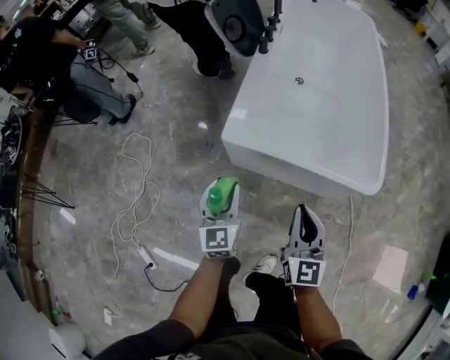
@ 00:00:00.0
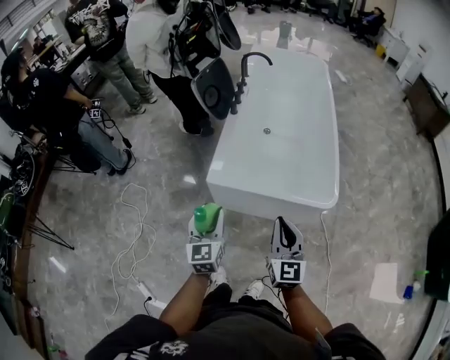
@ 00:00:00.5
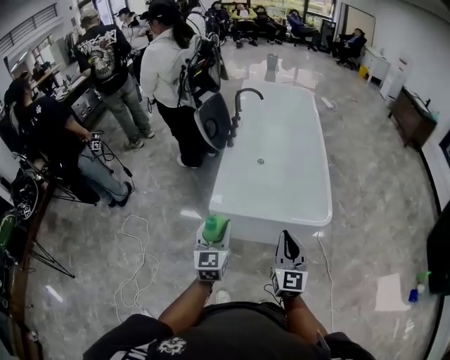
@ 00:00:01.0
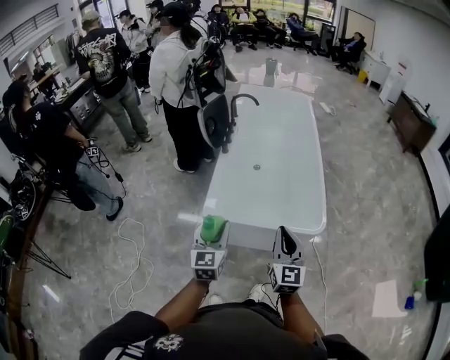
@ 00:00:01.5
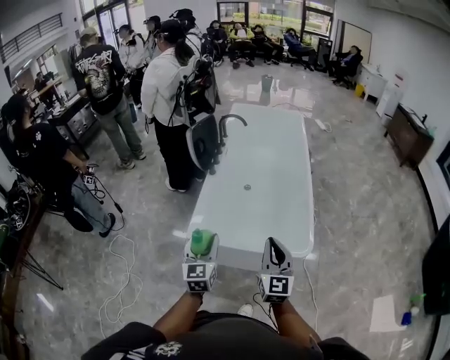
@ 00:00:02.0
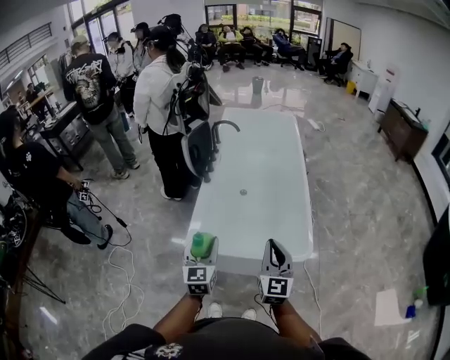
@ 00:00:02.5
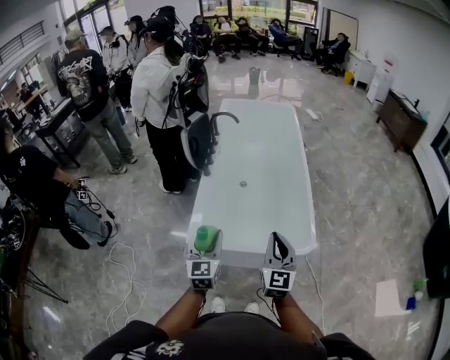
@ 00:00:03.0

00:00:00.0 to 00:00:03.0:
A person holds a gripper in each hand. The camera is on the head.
00:00:00.0 to 00:00:01.5: Both grippers travel together upward, approximately 25 cm.
00:00:01.5 to 00:00:03.0: The two grippers go about 10 cm forward and to the right.

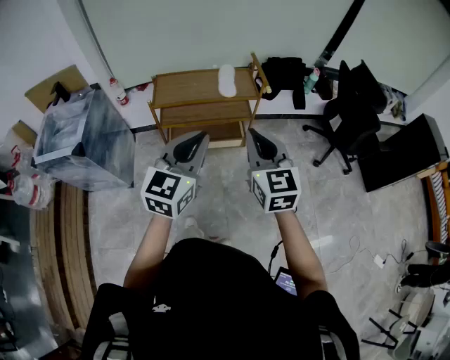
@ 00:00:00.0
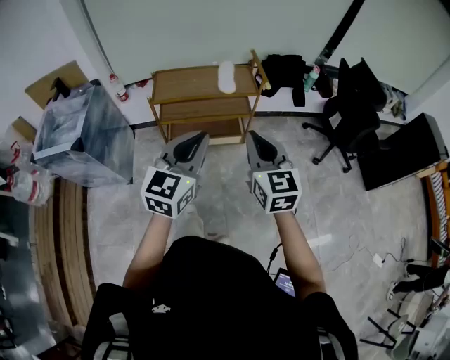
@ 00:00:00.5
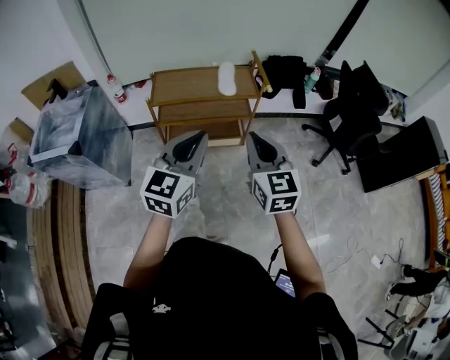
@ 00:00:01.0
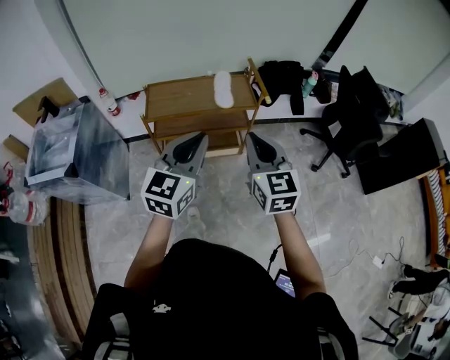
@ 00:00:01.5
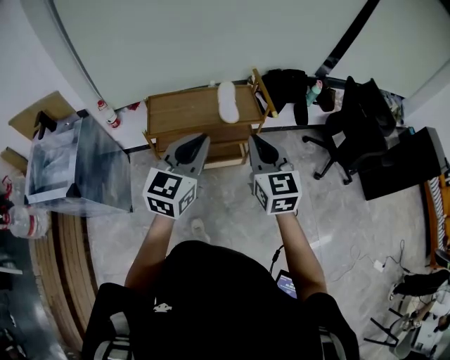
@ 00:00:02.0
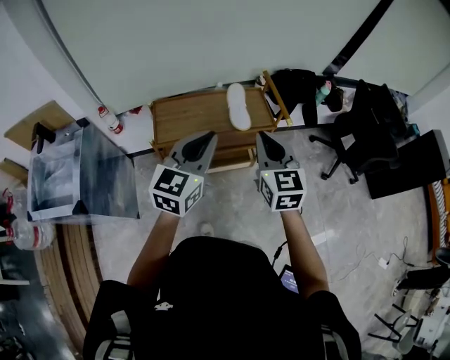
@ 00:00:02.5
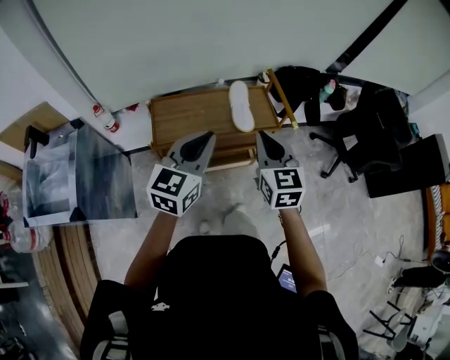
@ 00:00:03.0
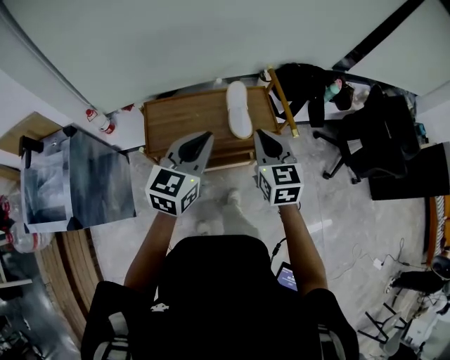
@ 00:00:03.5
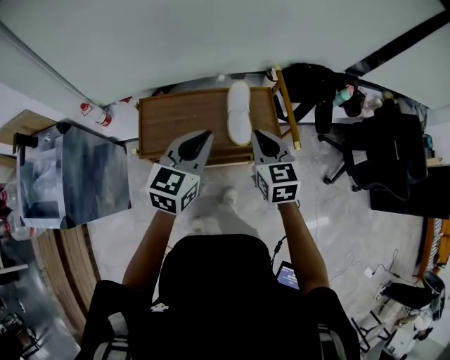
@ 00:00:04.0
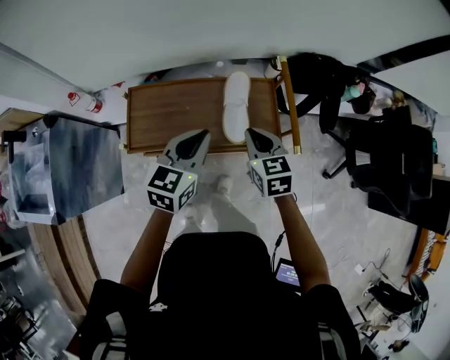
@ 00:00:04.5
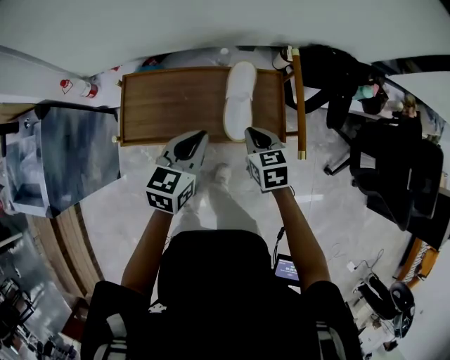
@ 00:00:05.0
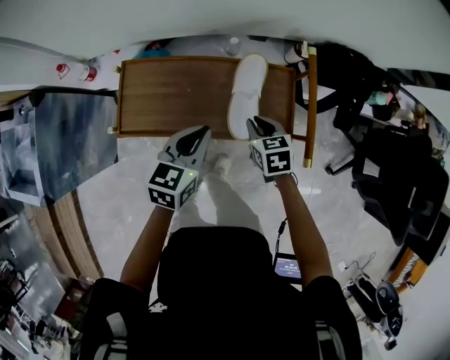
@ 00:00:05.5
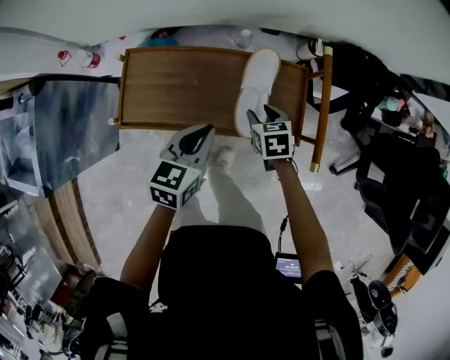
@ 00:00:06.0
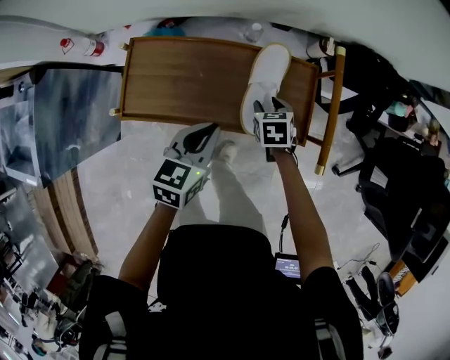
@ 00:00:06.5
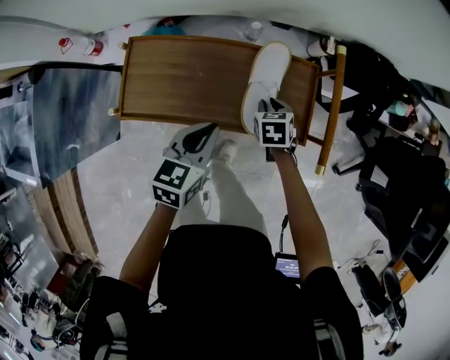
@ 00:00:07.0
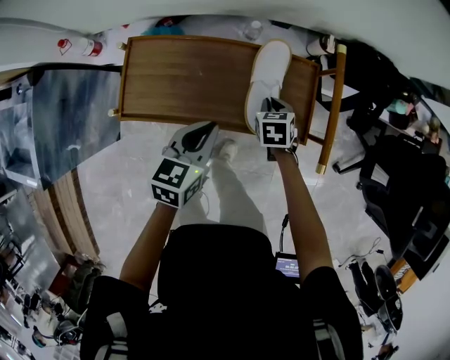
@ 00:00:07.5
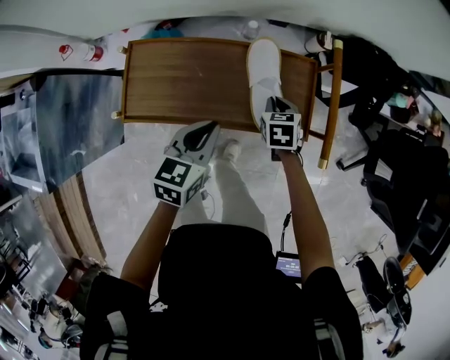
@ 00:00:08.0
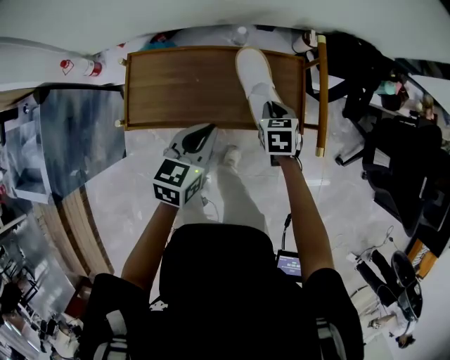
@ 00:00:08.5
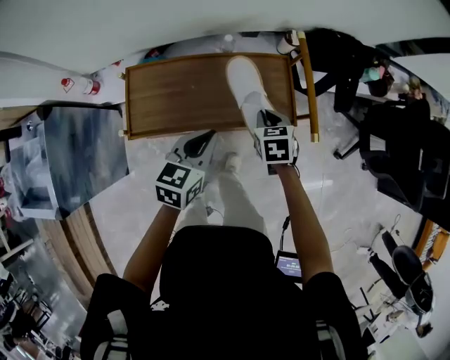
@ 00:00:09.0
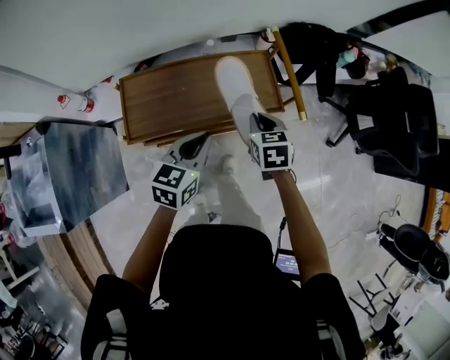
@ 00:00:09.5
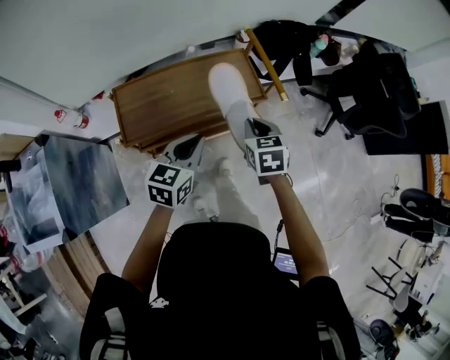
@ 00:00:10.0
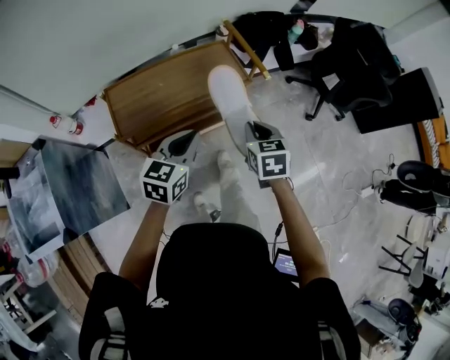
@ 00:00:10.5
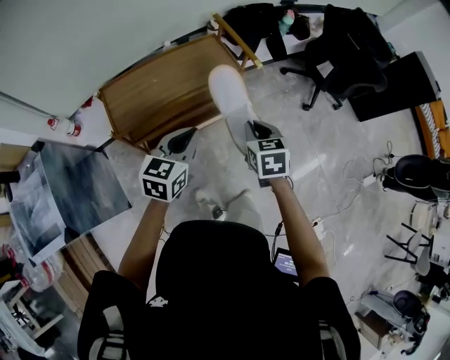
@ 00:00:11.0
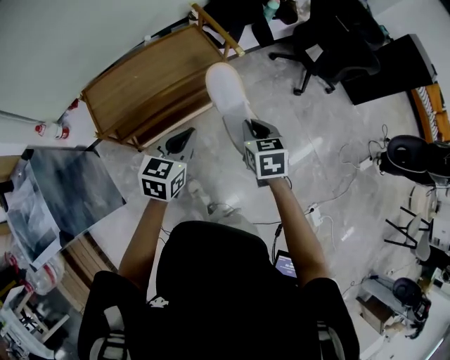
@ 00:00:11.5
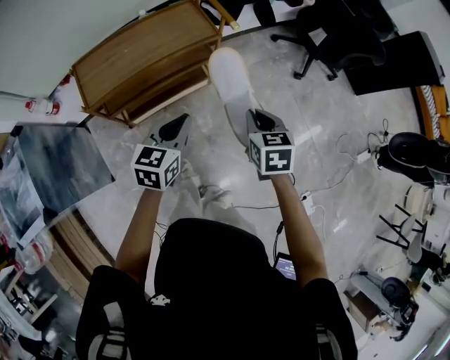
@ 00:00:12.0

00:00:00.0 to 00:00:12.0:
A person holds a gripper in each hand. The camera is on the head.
00:00:00.0 to 00:00:02.0: The two grippers go approximately 20 cm forward.
00:00:02.0 to 00:00:04.0: The right gripper moves forward and downward, some 35 cm. The left gripper goes approximately 30 cm forward.
00:00:04.0 to 00:00:06.0: Both grippers travel together downward and forward, approximately 25 cm. The right gripper tilts its fingers about 30 degrees downward, and opens its fingers; the left gripper rotates about 30 degrees.
00:00:06.0 to 00:00:08.0: The right gripper closes up.
00:00:08.0 to 00:00:10.0: The left gripper moves backward and upward, approximately 20 cm, and swivels roughly 30 degrees. Meanwhile the right gripper heads backward and upward, covering some 30 cm, and swivels about 20 degrees.
00:00:10.0 to 00:00:12.0: Both grippers move to the right and backward, about 20 cm.

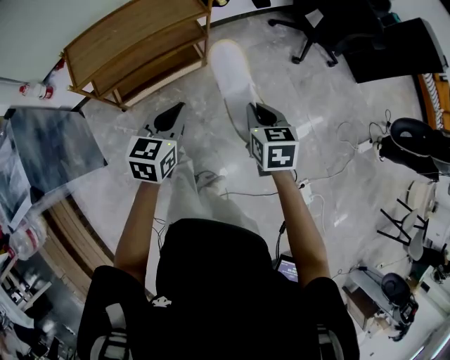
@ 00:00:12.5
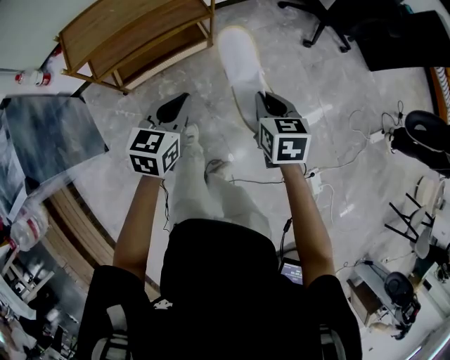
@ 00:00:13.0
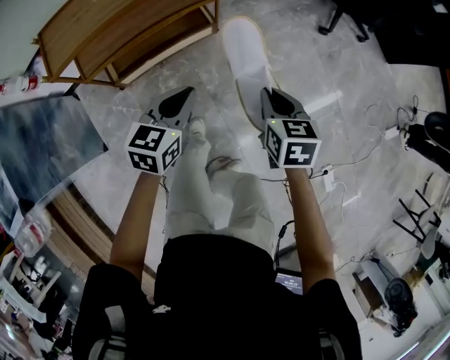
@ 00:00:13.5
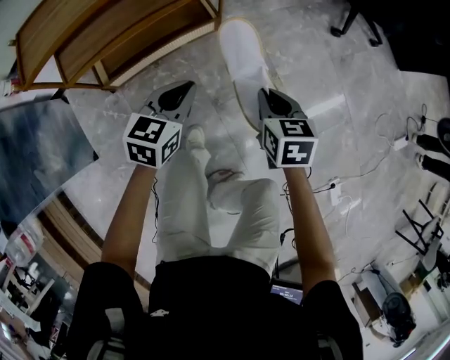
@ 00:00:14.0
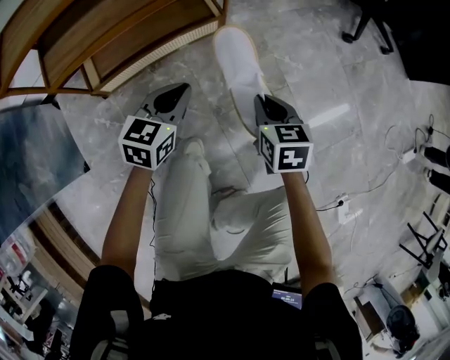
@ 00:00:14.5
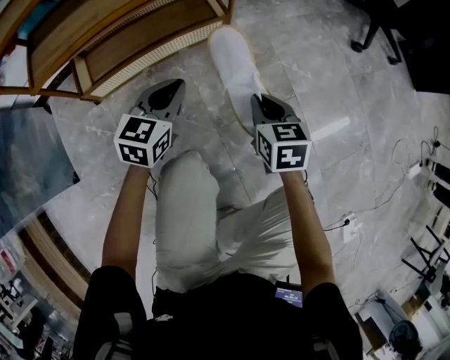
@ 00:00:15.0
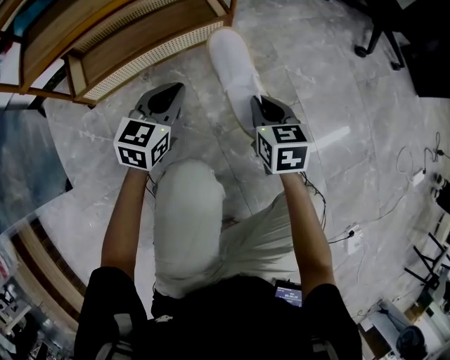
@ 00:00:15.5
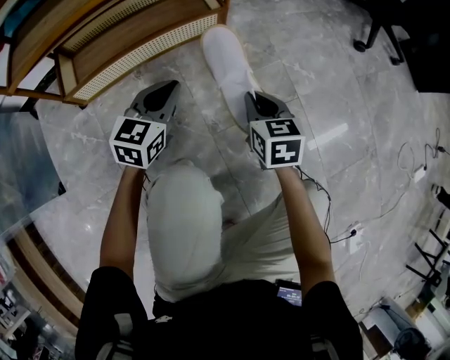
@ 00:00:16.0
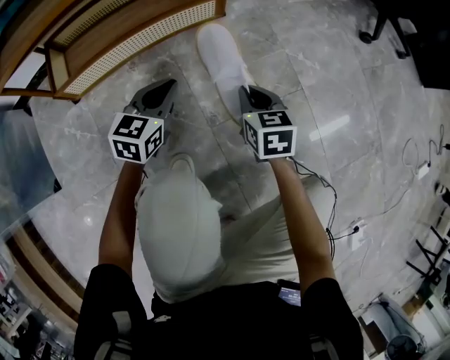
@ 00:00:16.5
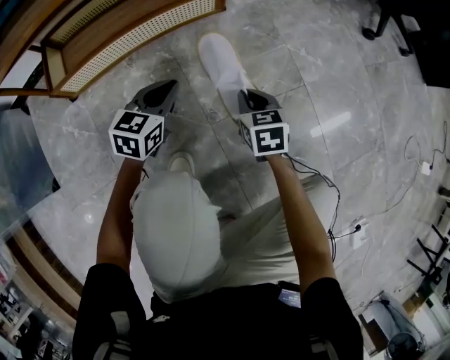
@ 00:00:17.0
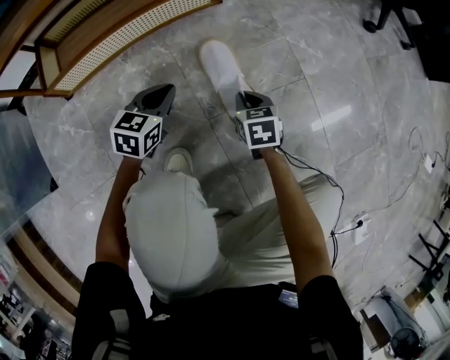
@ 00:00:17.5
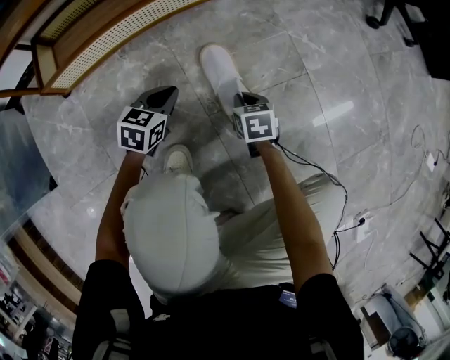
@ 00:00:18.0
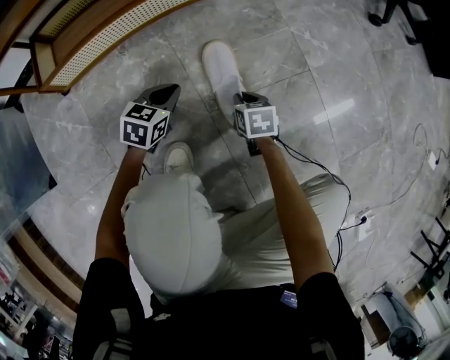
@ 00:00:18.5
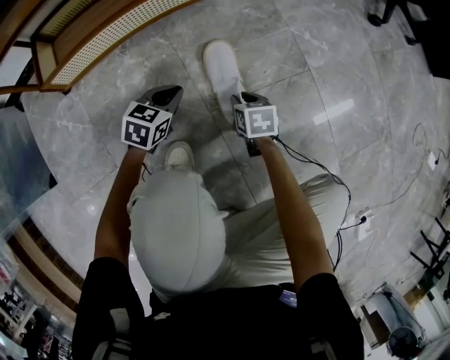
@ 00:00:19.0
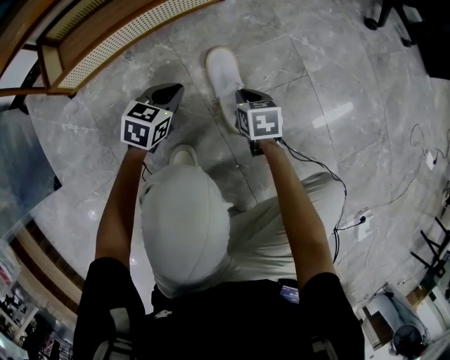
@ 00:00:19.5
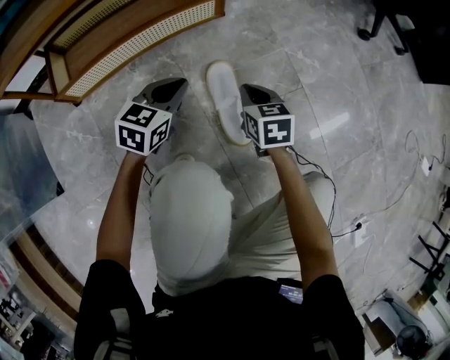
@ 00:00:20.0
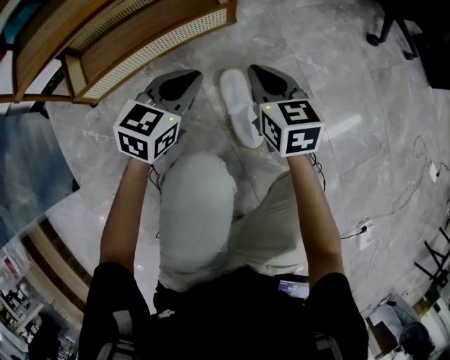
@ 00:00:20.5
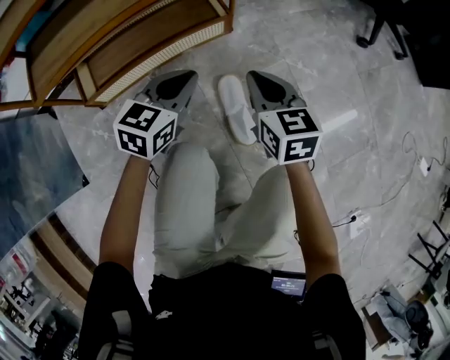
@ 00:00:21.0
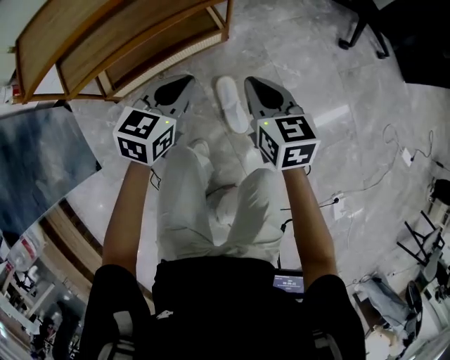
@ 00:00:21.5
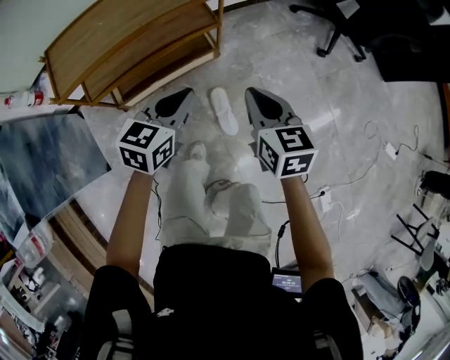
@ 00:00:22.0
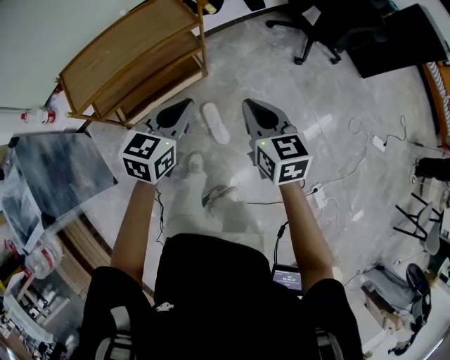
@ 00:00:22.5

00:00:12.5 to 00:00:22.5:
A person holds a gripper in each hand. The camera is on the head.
00:00:12.5 to 00:00:14.5: The grippers both shift downward by some 40 cm.
00:00:14.5 to 00:00:16.5: The grippers both shift downward by approximately 25 cm.
00:00:16.5 to 00:00:18.5: Both grippers move downward, about 15 cm.
00:00:18.5 to 00:00:20.5: Both grippers move upward, about 25 cm. The right gripper rotates roughly 30 degrees.
00:00:20.5 to 00:00:22.5: Both grippers travel together upward, approximately 60 cm.

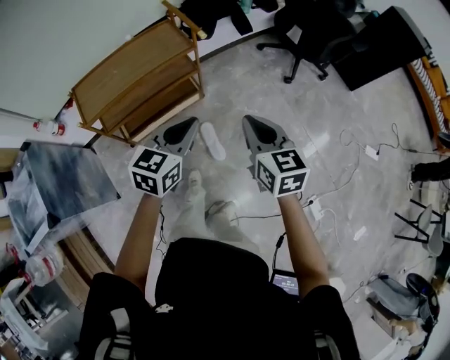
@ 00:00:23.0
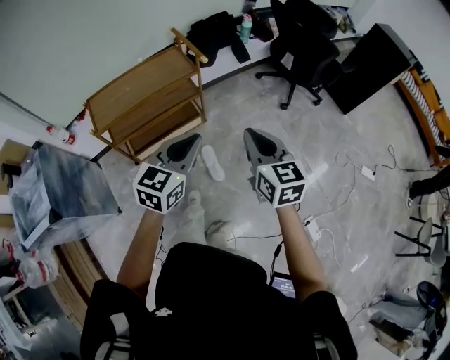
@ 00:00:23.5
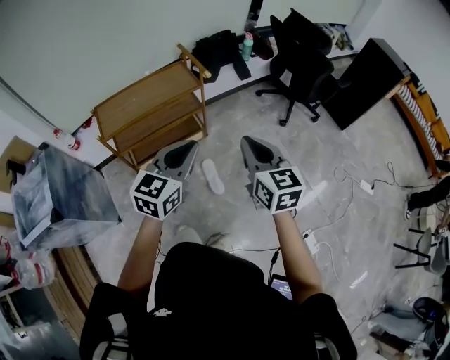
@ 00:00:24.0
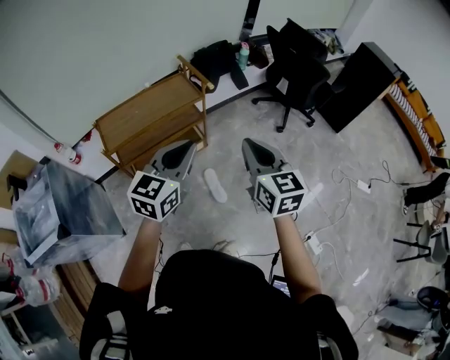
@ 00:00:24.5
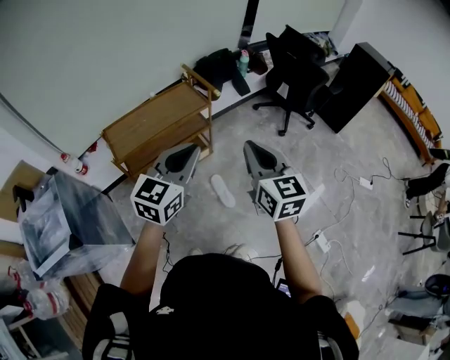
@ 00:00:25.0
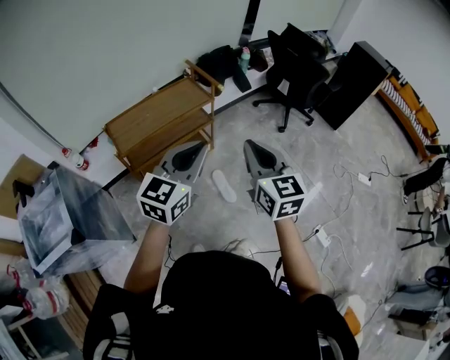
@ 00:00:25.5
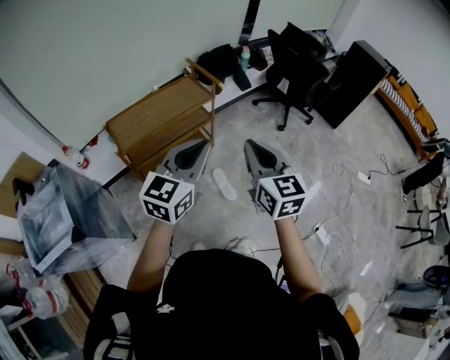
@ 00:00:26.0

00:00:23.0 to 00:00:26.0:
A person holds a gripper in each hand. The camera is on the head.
00:00:23.0 to 00:00:24.5: Both grippers travel together upward and backward, some 15 cm.
00:00:24.5 to 00:00:26.0: The left gripper is displaced backward and to the left by some 10 cm; the right gripper heads to the left and backward, covering approximately 10 cm.
